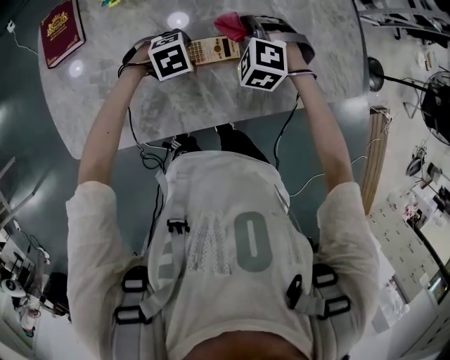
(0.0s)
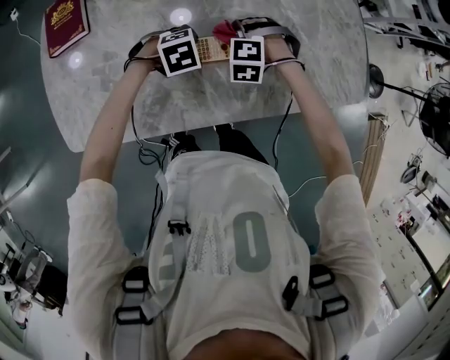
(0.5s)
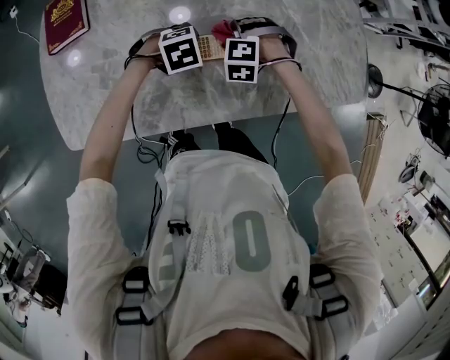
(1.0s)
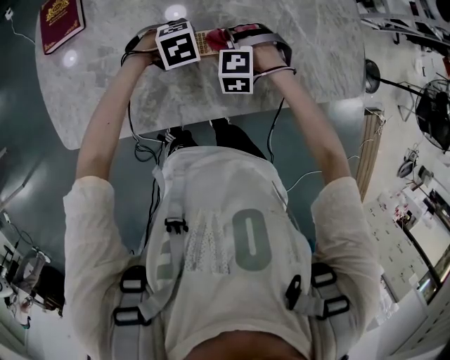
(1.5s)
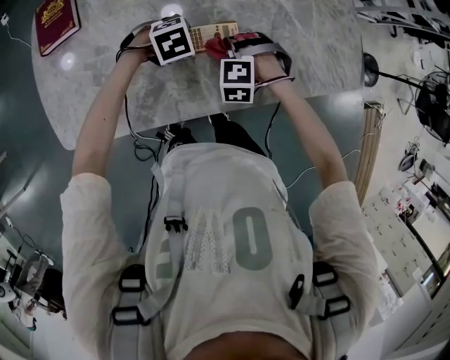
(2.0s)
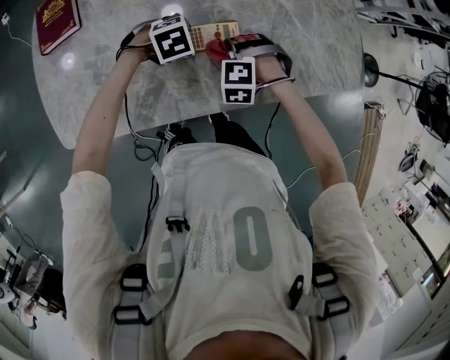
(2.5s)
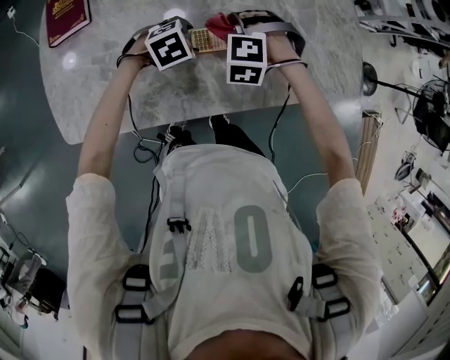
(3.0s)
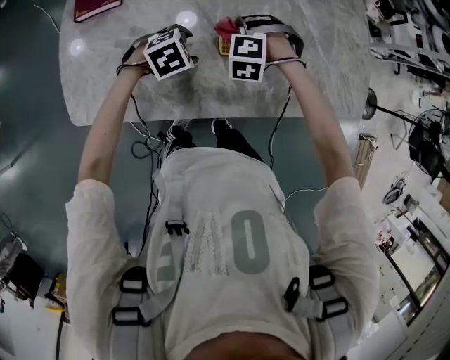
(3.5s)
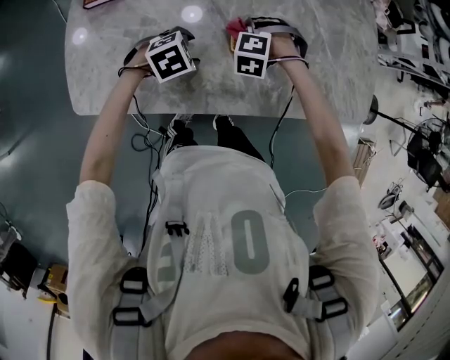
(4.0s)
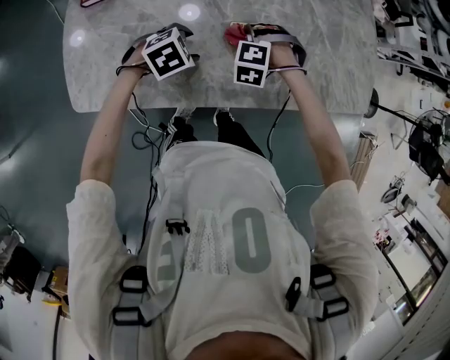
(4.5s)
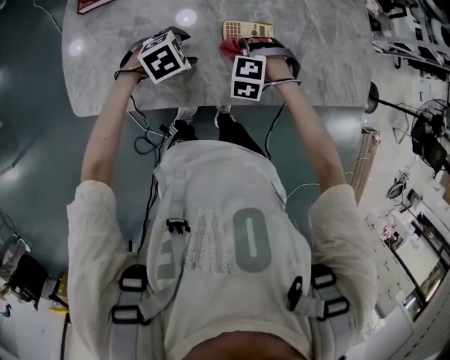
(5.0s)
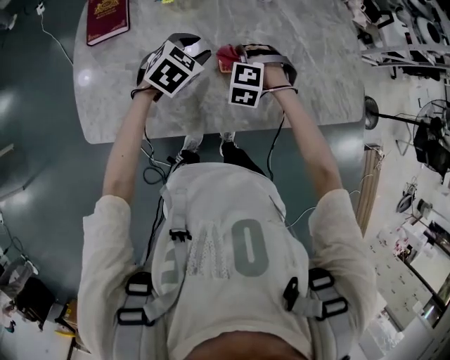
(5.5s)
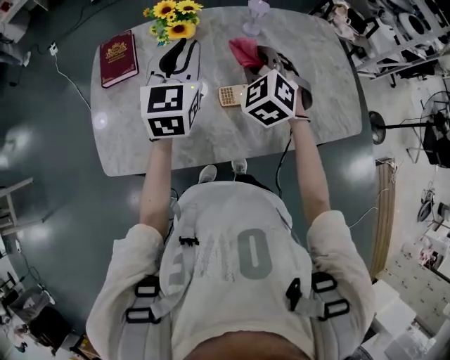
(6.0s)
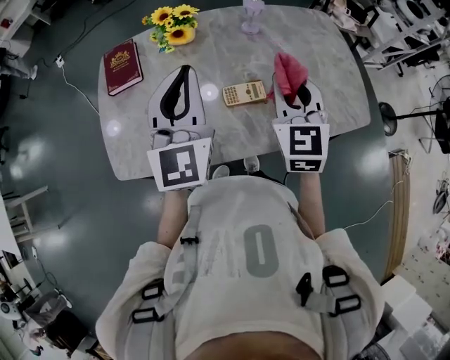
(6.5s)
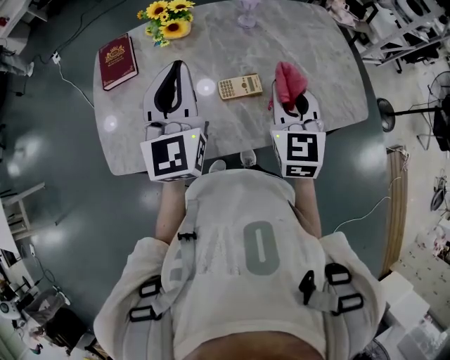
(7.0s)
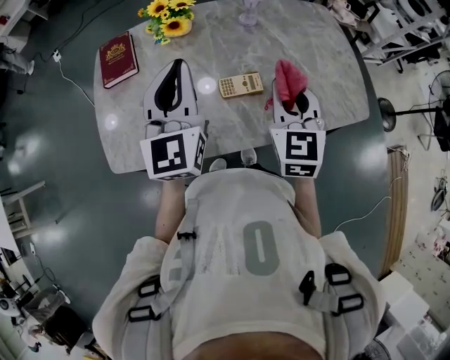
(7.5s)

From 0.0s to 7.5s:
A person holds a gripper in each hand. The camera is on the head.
From 0.0s to 2.0s: The right gripper heads downward and backward, covering roughly 10 cm.
From 2.0s to 4.0s: The right gripper travels to the left by roughly 10 cm. The left gripper goes about 15 cm backward and to the left.
From 4.0s to 5.5s: The left gripper is displaced upward and forward by roughly 15 cm, and changes its angle by approximately 30 degrees. Meanwhile the right gripper changes place by about 5 cm.
From 5.5s to 7.5s: The left gripper heads upward, covering roughly 25 cm, and tilts its fingers some 50 degrees upward, while the right gripper moves upward and to the right, about 25 cm, and rolls clockwise, seen from behind, by some 70 degrees.

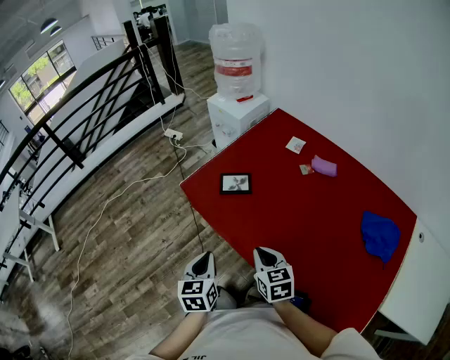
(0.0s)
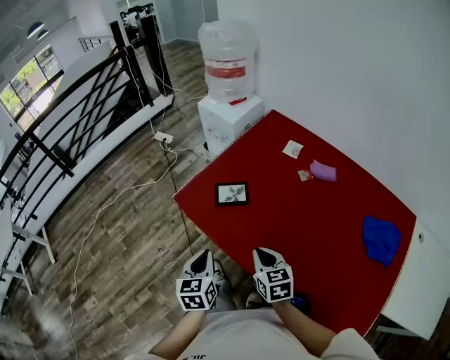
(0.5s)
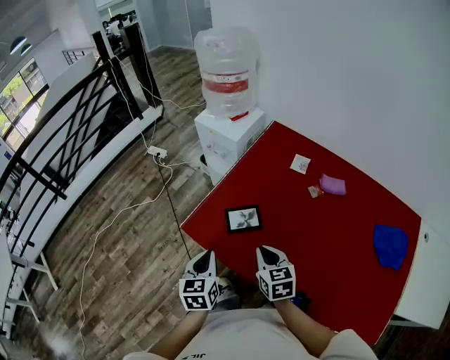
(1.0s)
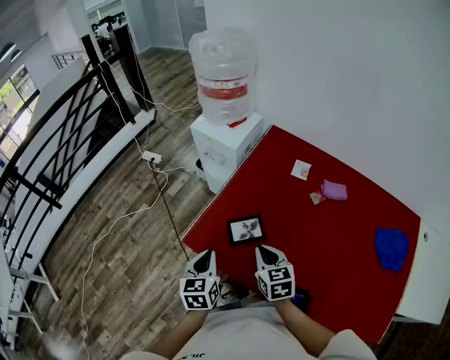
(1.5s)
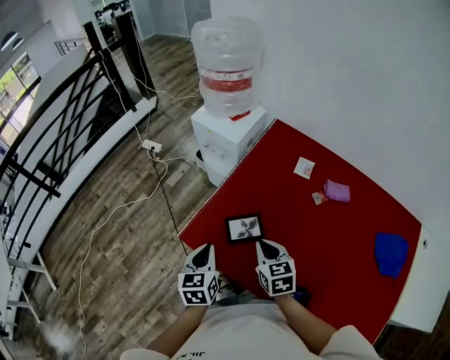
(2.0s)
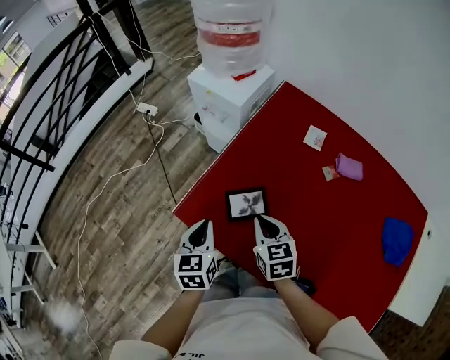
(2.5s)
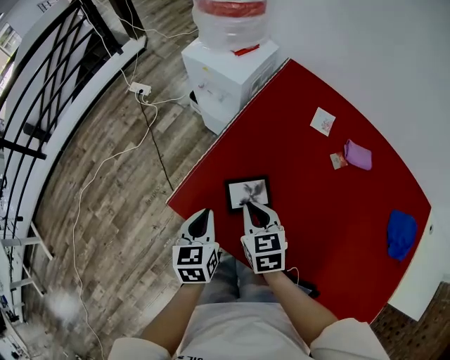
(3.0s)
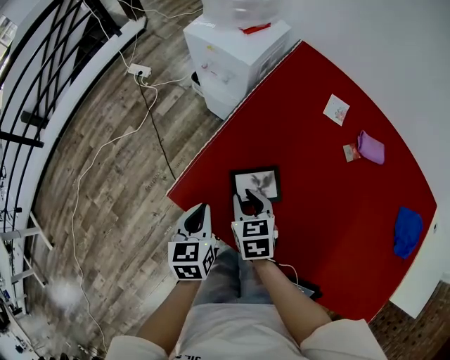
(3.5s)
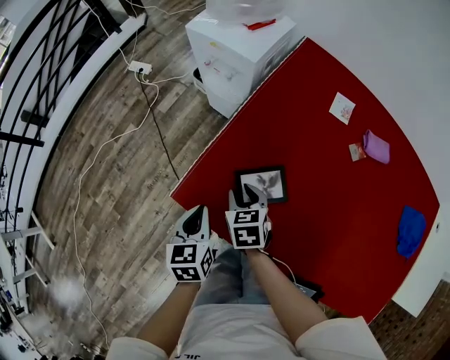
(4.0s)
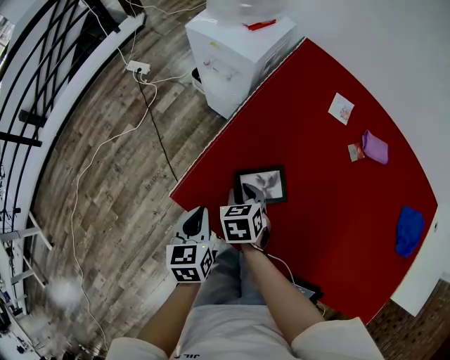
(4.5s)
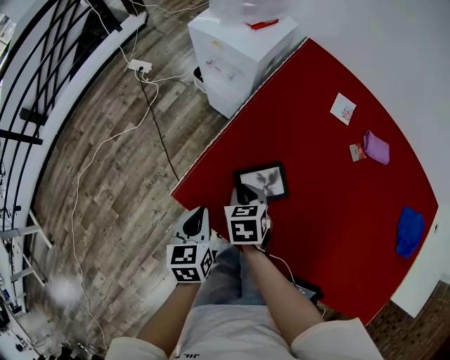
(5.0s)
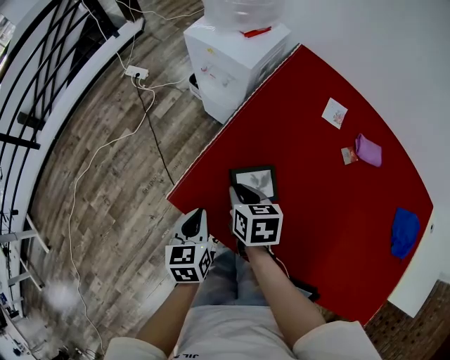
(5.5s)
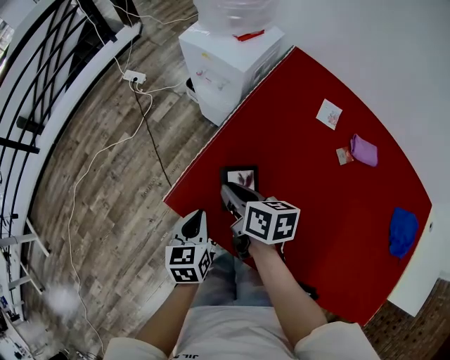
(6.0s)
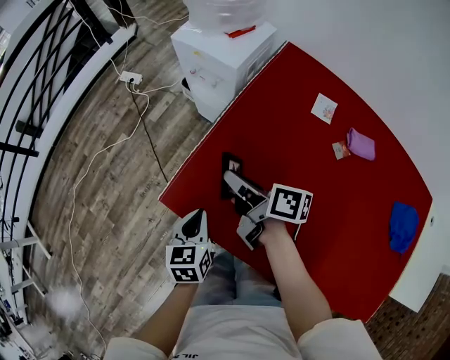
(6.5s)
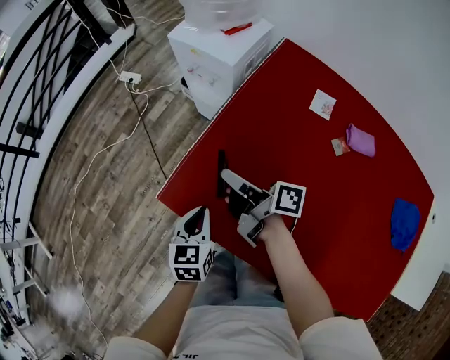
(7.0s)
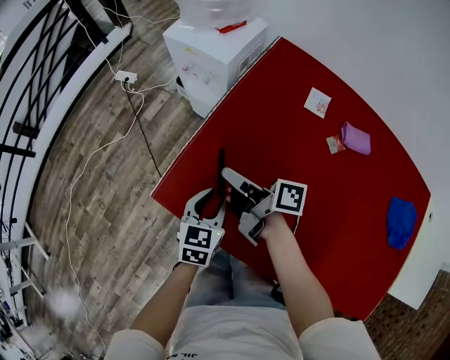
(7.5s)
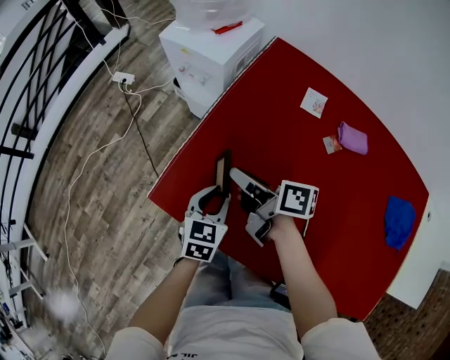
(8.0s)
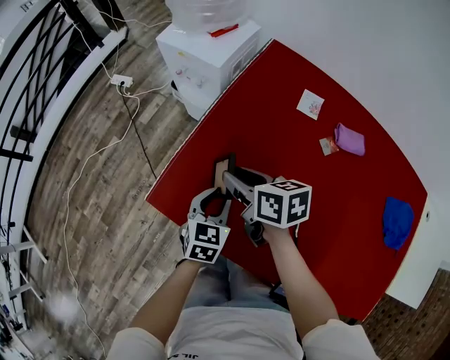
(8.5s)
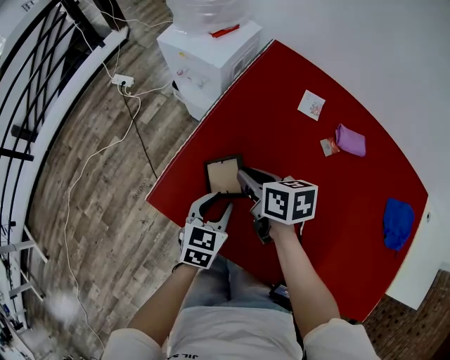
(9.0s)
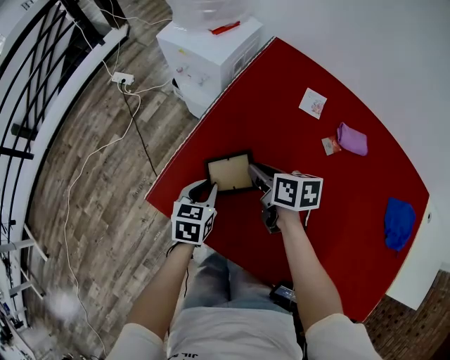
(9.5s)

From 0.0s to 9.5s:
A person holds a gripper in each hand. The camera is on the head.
From 0.0s to 2.0s: The two grippers go approximately 30 cm forward.
From 2.0s to 4.0s: The right gripper heads downward, to the left and forward, covering approximately 20 cm, and opens up. The left gripper is displaced downward by some 15 cm.
From 4.0s to 5.5s: The grippers move only a little.
From 5.5s to 7.5s: The right gripper goes roughly 5 cm upward, and angles its fingers upward, by about 40 degrees, while the left gripper moves to the right, roughly 10 cm, turns by approximately 20 degrees, and opens.
From 7.5s to 9.5s: The right gripper heads to the right and downward, covering roughly 10 cm, and tips its fingers downward by roughly 30 degrees, while the left gripper changes place by approximately 5 cm.

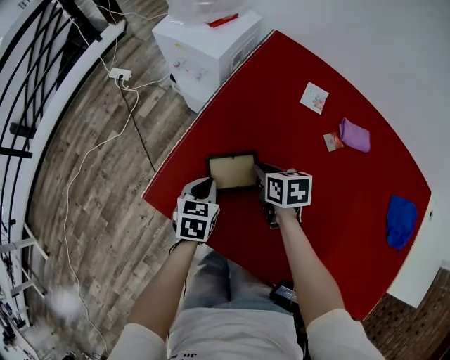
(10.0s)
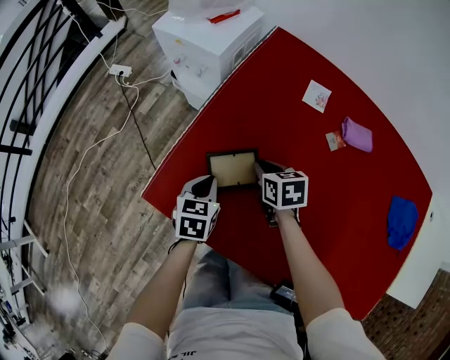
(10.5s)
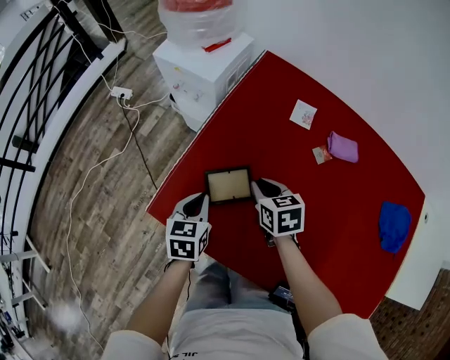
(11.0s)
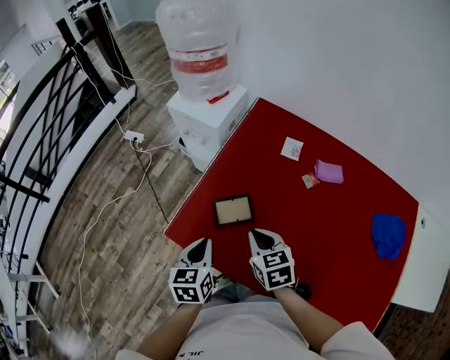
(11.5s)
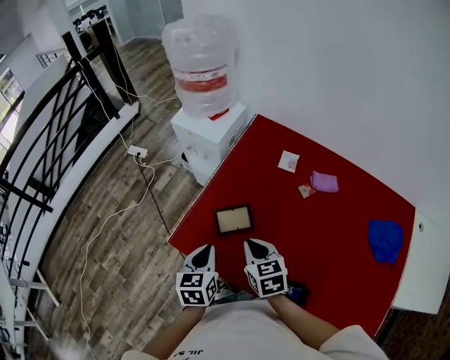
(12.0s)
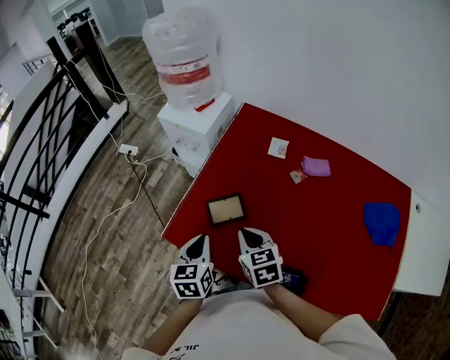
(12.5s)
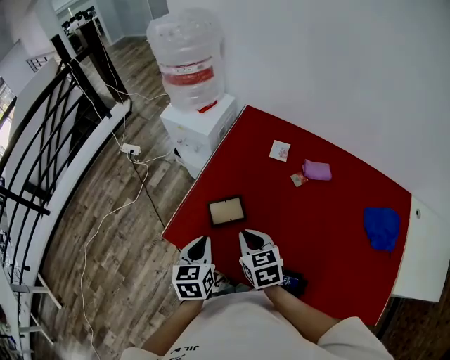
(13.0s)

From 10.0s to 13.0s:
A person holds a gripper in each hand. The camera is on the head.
From 10.0s to 11.5s: The grippers both shift upward and backward by about 20 cm. The right gripper swivels about 20 degrees.
From 11.5s to 13.0s: The grippers move only a little.

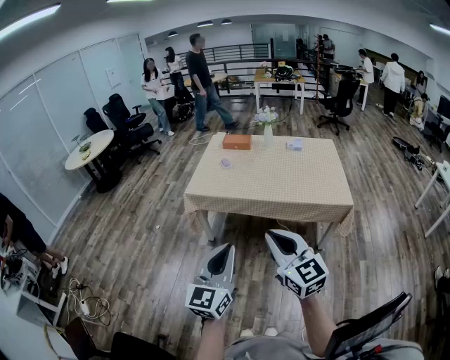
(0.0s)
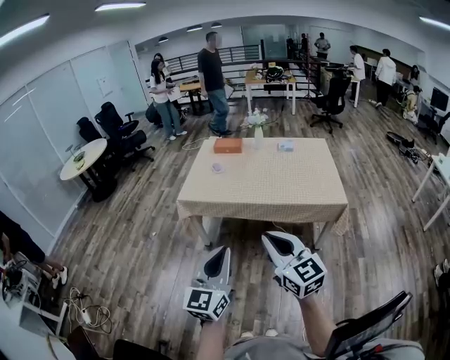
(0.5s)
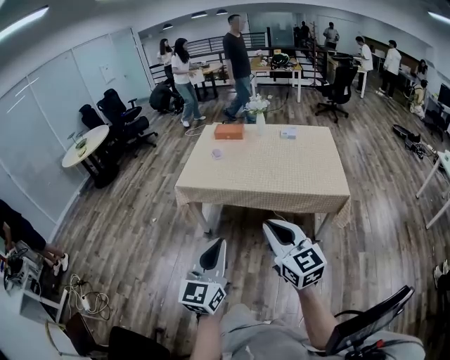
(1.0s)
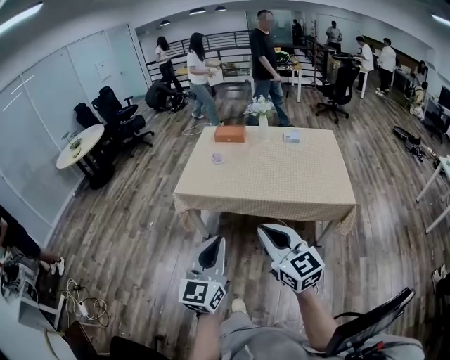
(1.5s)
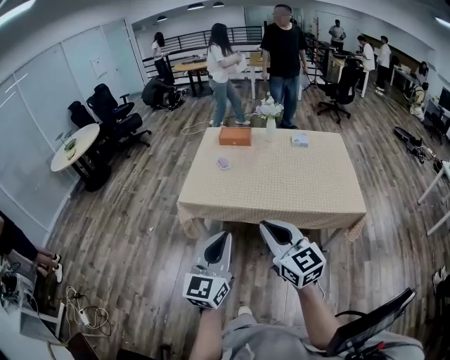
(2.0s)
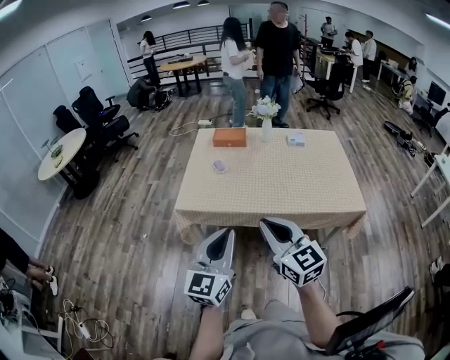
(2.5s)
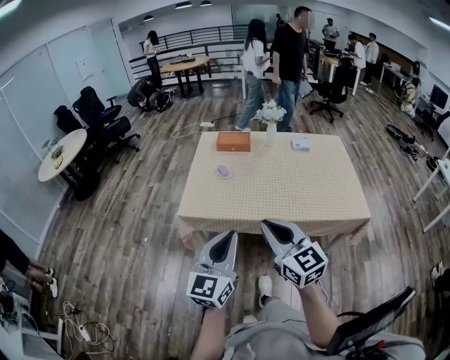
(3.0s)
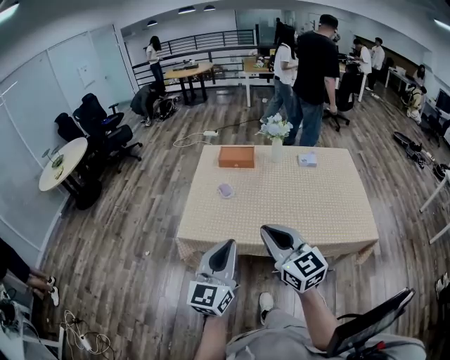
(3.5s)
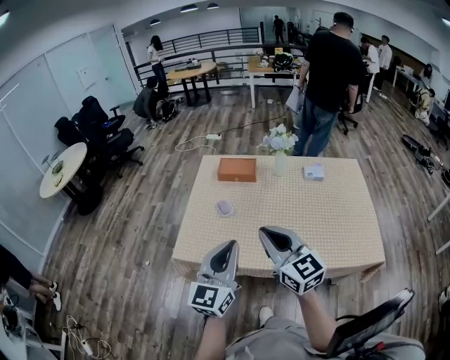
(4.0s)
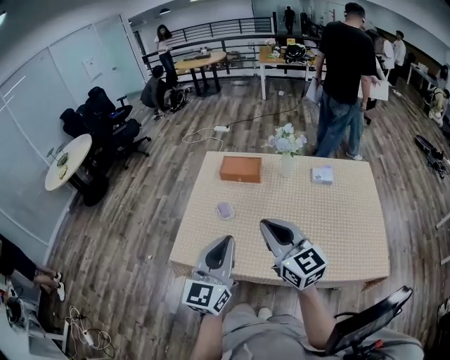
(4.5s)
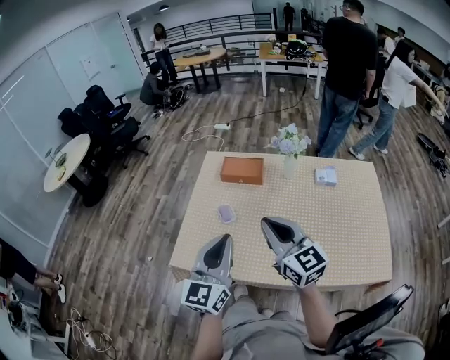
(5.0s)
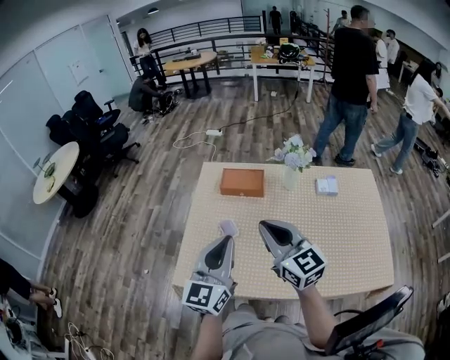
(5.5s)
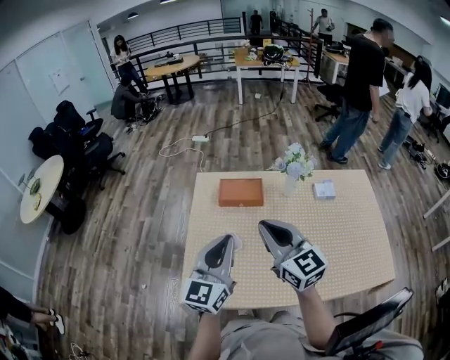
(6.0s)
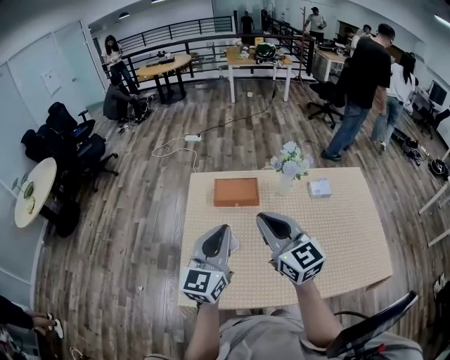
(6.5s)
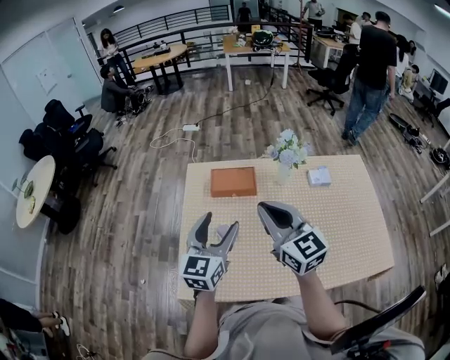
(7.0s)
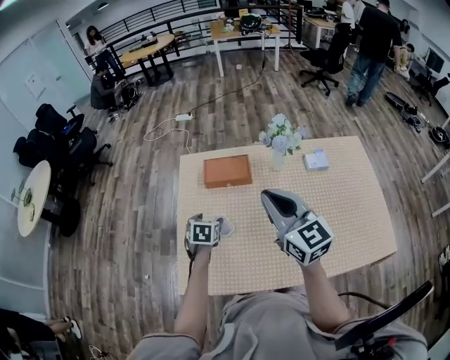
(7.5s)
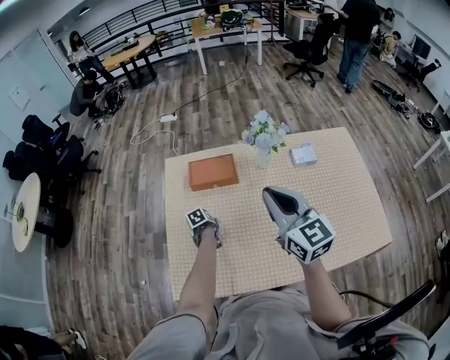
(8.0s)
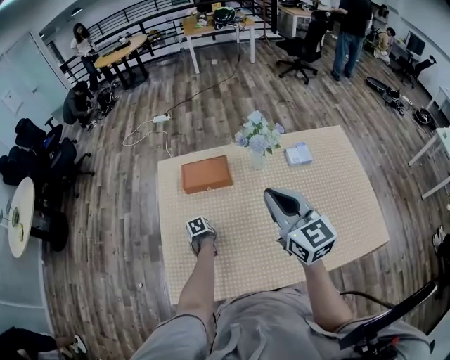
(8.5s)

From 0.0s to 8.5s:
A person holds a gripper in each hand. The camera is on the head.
From 0.0s to 2.0s: Both grippers travel together forward, approximately 20 cm.
From 2.0s to 4.0s: Both grippers travel together forward, about 35 cm.
From 4.0s to 6.5s: The two grippers go roughly 30 cm forward.
From 6.5s to 8.5s: The left gripper travels downward by approximately 50 cm, tilts its fingers some 70 degrees downward, and opens its fingers, while the right gripper shifts some 15 cm to the right.
